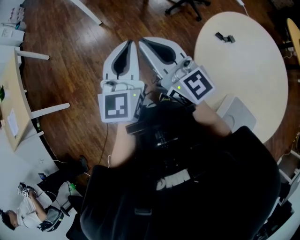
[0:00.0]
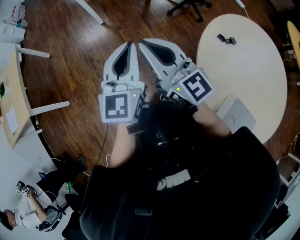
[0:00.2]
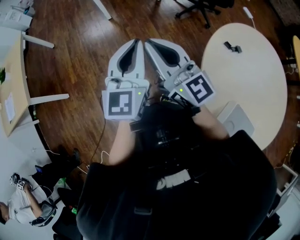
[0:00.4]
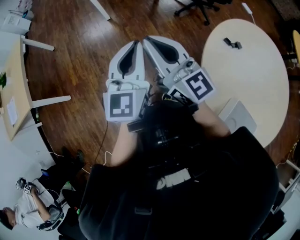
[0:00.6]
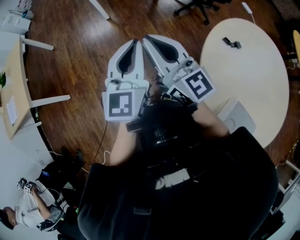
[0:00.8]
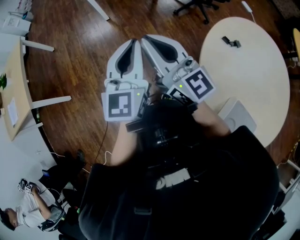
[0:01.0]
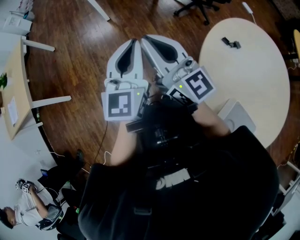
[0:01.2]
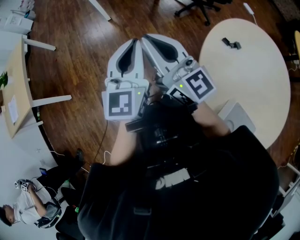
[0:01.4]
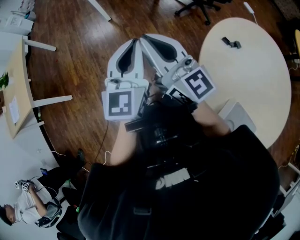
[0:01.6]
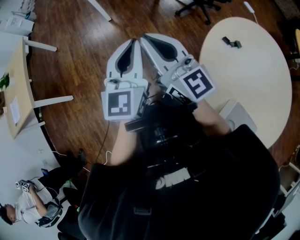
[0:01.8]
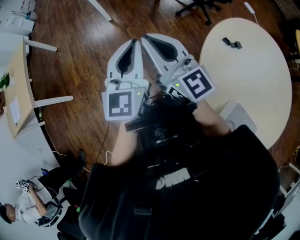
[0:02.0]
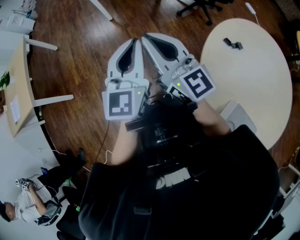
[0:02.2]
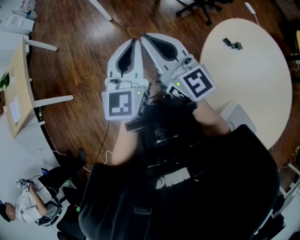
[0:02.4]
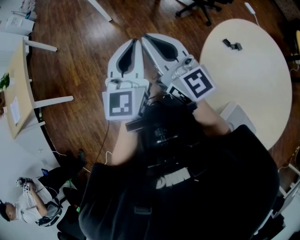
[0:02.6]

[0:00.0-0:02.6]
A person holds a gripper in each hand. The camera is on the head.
0:00.0 to 0:01.2: Neither gripper changes place.
0:01.2 to 0:02.6: Both grippers stay put.

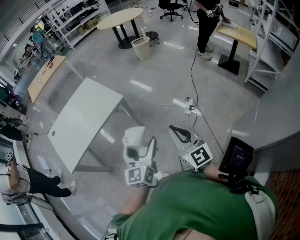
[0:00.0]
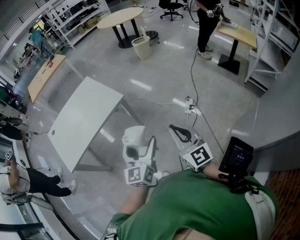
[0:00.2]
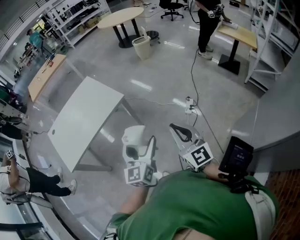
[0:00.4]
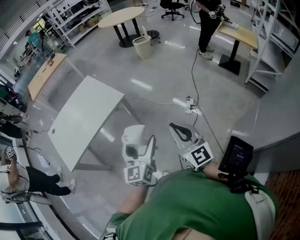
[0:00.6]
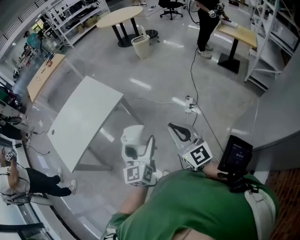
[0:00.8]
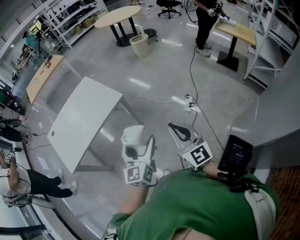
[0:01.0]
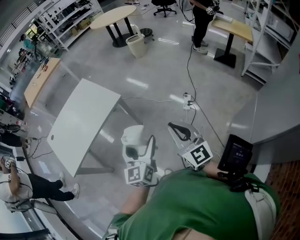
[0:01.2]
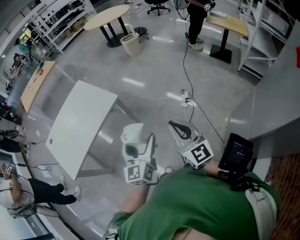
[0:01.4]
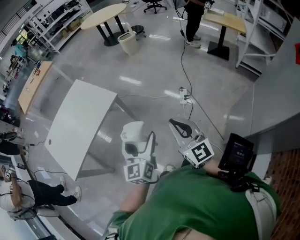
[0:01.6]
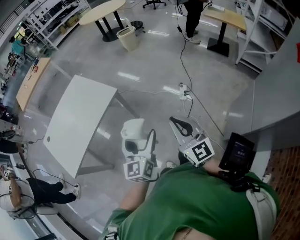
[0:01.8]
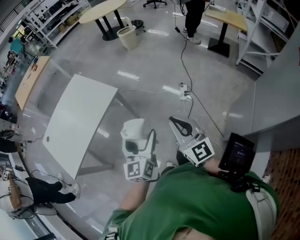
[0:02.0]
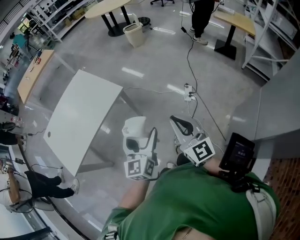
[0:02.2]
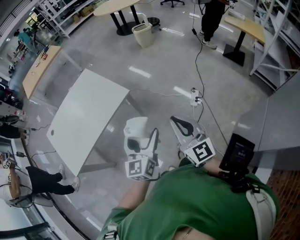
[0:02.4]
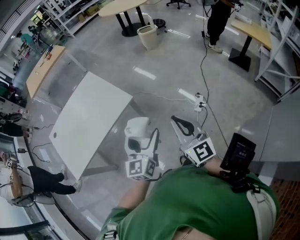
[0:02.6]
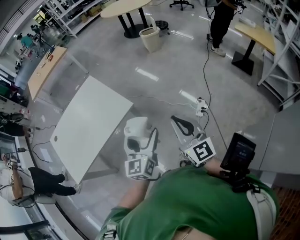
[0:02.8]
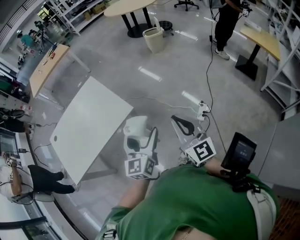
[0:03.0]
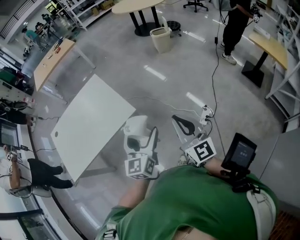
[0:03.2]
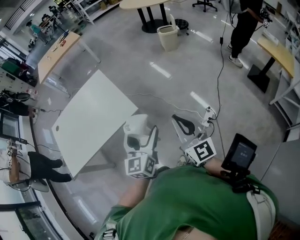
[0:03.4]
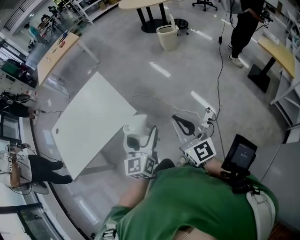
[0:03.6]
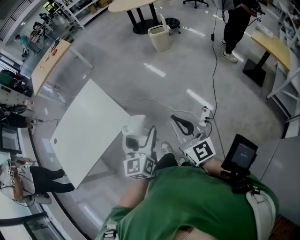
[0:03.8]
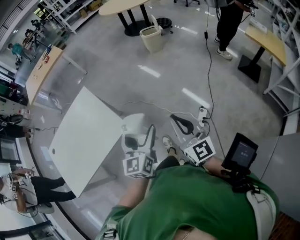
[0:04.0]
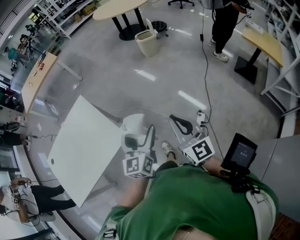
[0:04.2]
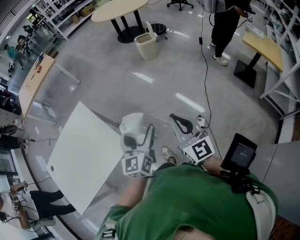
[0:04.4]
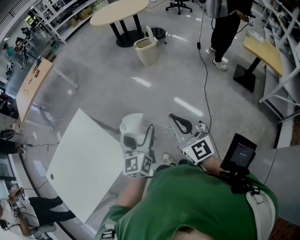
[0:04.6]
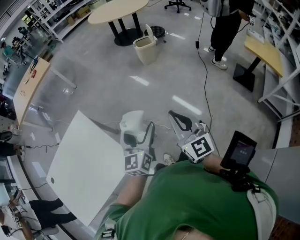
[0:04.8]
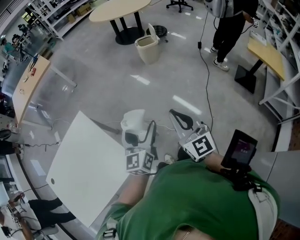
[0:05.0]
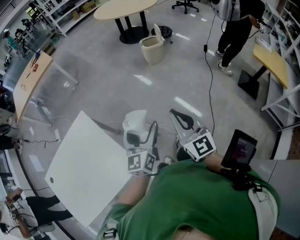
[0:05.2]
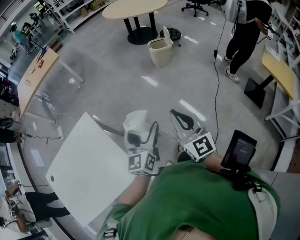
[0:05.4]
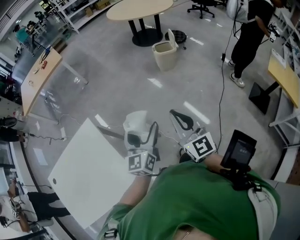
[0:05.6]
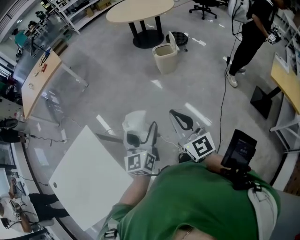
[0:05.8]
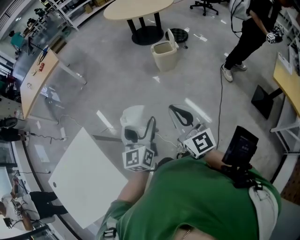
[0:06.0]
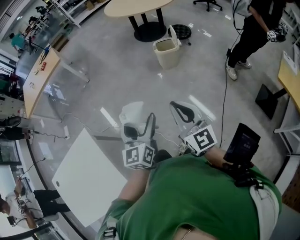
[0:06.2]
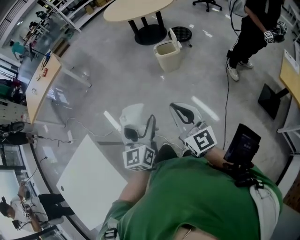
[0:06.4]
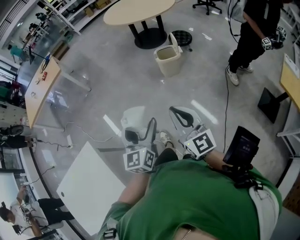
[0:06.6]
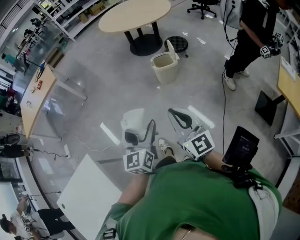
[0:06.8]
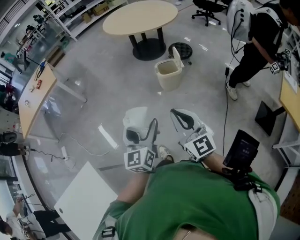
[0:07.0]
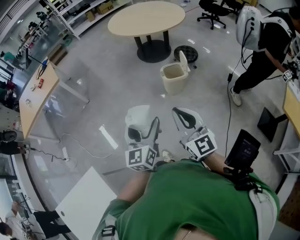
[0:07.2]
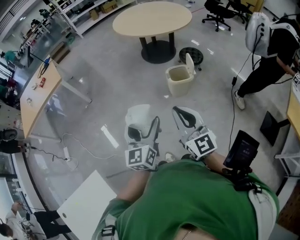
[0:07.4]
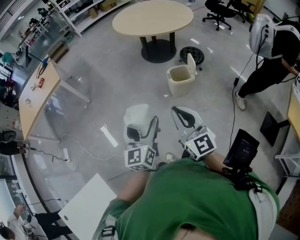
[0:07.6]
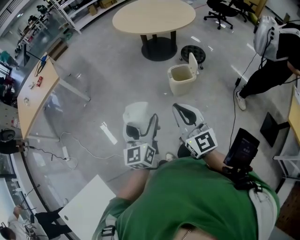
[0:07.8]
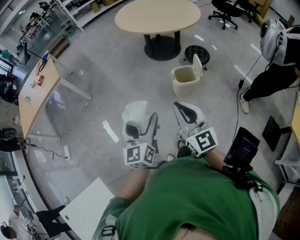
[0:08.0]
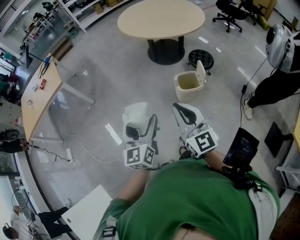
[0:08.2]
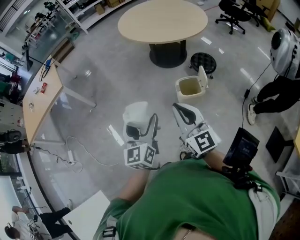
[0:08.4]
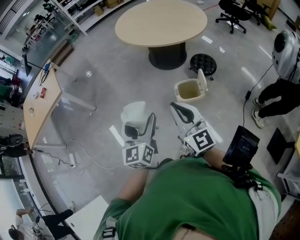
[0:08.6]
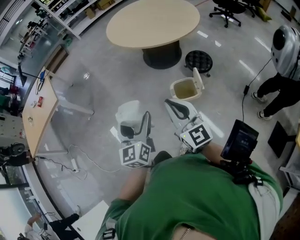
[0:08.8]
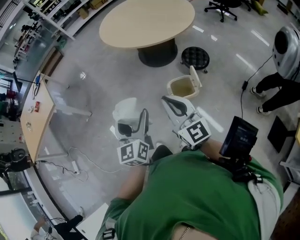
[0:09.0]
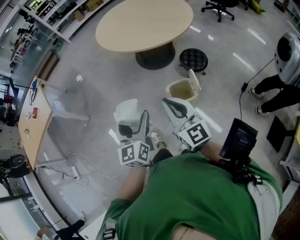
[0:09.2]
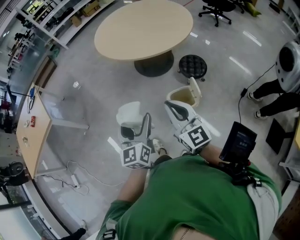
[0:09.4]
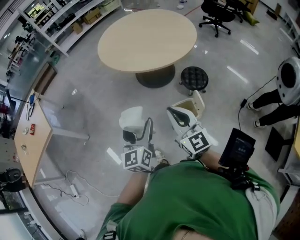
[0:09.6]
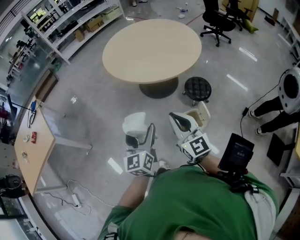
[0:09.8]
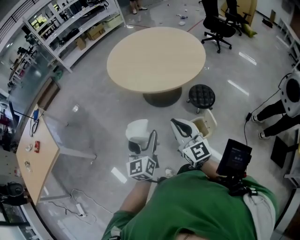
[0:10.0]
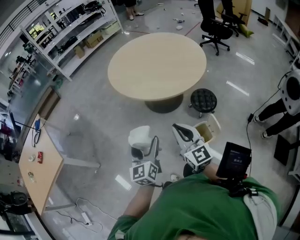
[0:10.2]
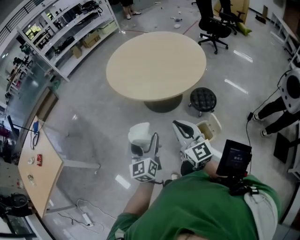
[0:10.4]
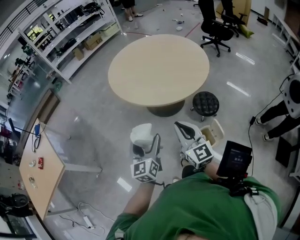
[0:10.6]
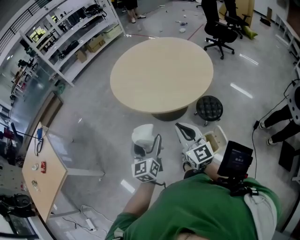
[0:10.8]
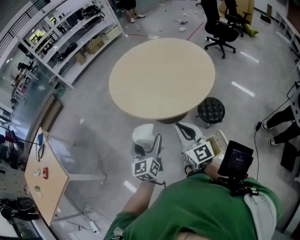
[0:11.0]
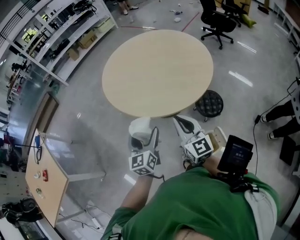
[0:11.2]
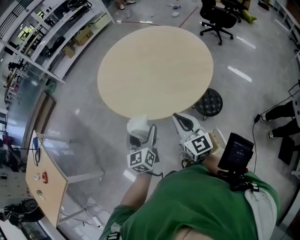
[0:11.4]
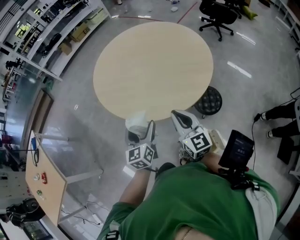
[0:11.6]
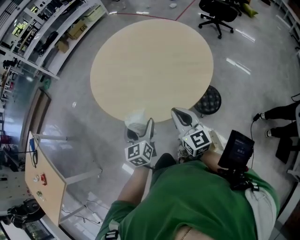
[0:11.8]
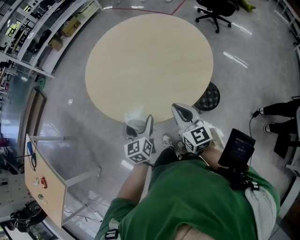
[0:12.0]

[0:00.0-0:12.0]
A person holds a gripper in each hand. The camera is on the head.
0:00.0 to 0:01.6: The grippers stay close to where they were, moving slightly.
0:01.6 to 0:03.0: Both grippers travel together forward, roughly 20 cm.
0:03.0 to 0:04.4: The grippers both shift forward by about 20 cm.
0:04.4 to 0:06.0: Both grippers travel together forward, approximately 35 cm.
0:06.0 to 0:07.6: The two grippers go approximately 35 cm forward.
0:07.6 to 0:09.0: Both grippers move forward and to the right, about 30 cm.
0:09.0 to 0:10.4: The two grippers go roughly 25 cm forward.
0:10.4 to 0:12.0: The right gripper travels forward and to the right by approximately 30 cm; the left gripper is displaced forward by approximately 30 cm.

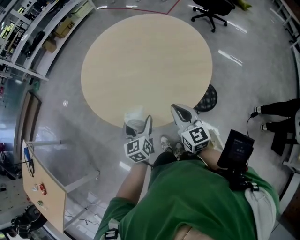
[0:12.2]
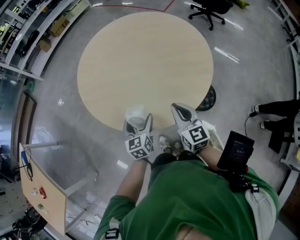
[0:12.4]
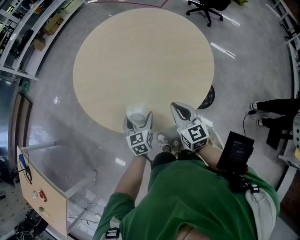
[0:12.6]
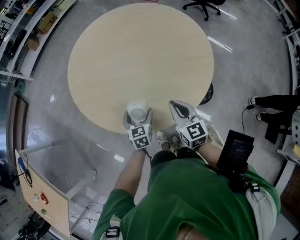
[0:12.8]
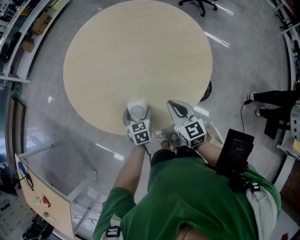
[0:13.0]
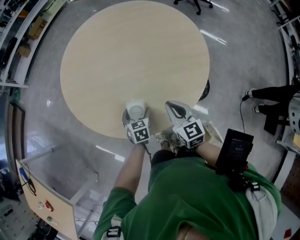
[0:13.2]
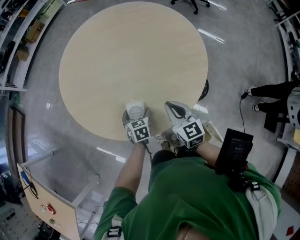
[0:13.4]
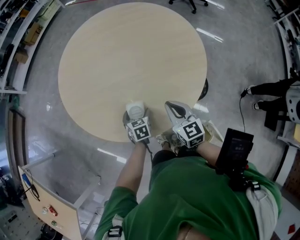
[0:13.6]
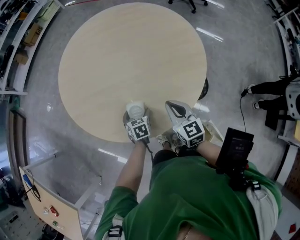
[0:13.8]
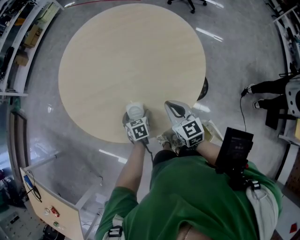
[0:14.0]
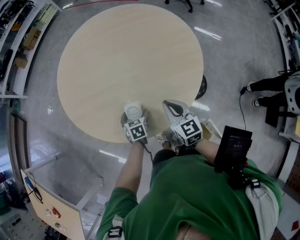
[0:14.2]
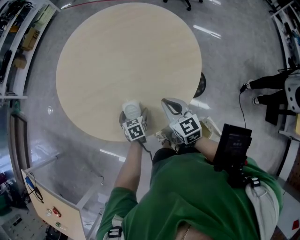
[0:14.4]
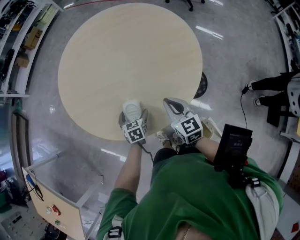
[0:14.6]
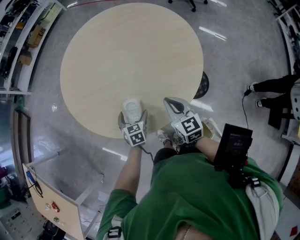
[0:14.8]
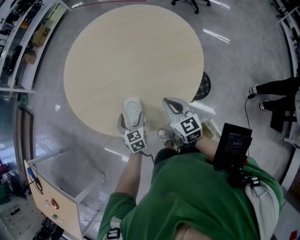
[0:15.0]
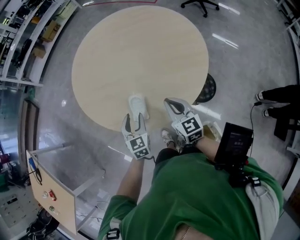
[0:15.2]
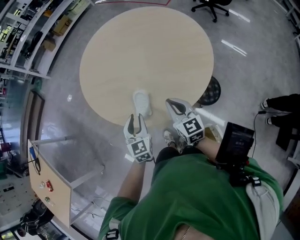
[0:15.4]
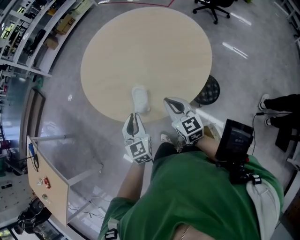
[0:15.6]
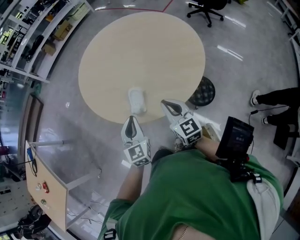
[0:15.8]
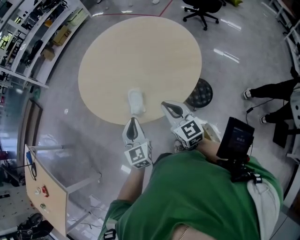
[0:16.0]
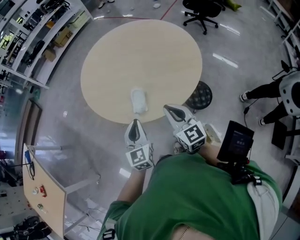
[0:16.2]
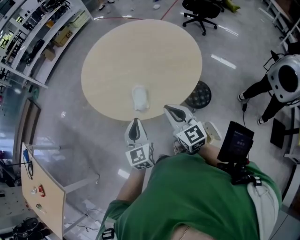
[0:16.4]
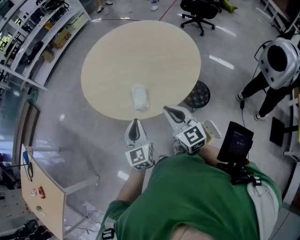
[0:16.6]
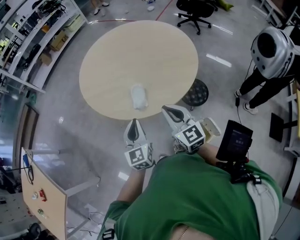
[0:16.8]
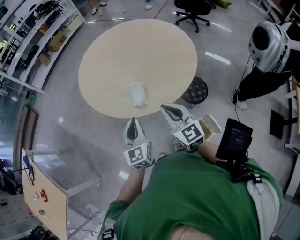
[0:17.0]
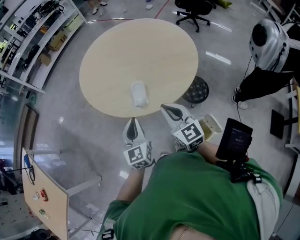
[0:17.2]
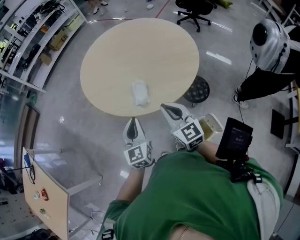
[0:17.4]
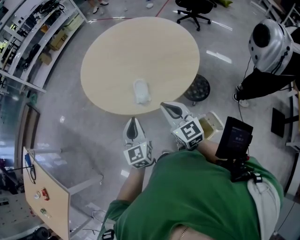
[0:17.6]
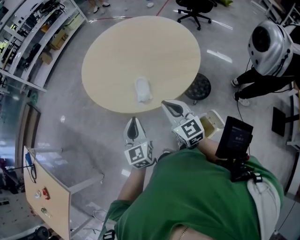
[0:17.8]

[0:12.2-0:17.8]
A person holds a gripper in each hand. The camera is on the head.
0:12.2 to 0:13.6: The left gripper is displaced downward and forward by approximately 20 cm, and tilts its fingers about 30 degrees downward; the right gripper shifts roughly 10 cm forward and downward.
0:13.6 to 0:15.0: The left gripper goes some 5 cm upward.
0:15.0 to 0:16.4: The left gripper moves upward and backward, some 20 cm, swivels some 30 degrees, and closes. The right gripper moves backward, upward and to the left, roughly 15 cm.
0:16.4 to 0:17.8: The left gripper moves approximately 5 cm, while the right gripper ends up approximately 5 cm from where it was.

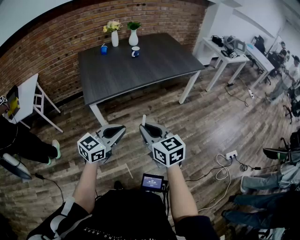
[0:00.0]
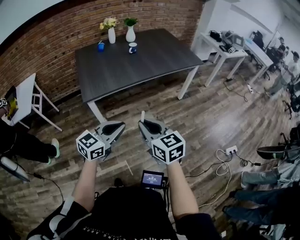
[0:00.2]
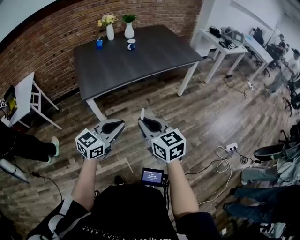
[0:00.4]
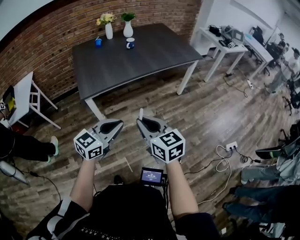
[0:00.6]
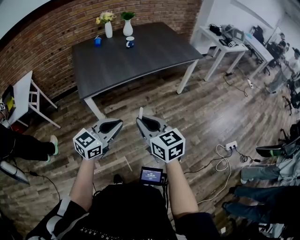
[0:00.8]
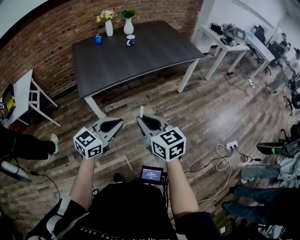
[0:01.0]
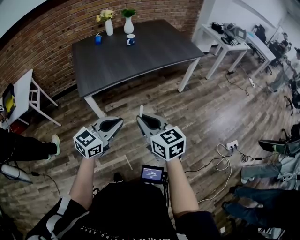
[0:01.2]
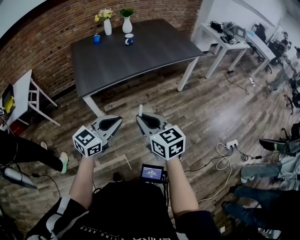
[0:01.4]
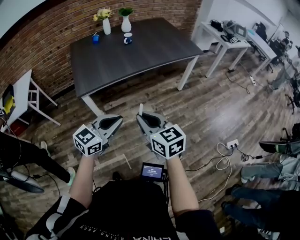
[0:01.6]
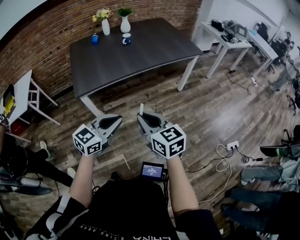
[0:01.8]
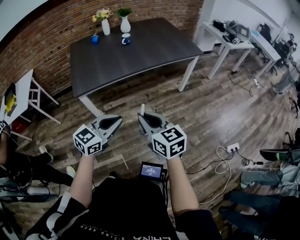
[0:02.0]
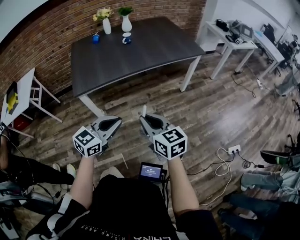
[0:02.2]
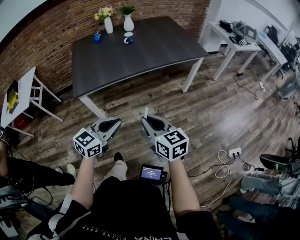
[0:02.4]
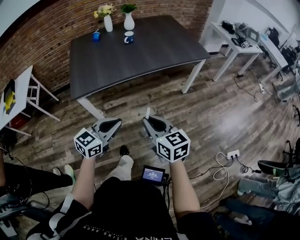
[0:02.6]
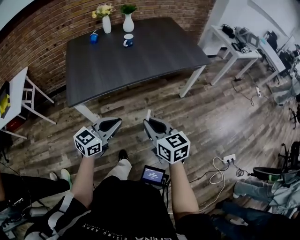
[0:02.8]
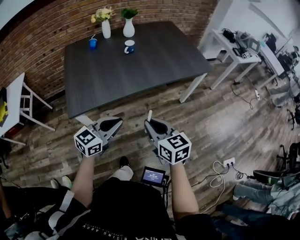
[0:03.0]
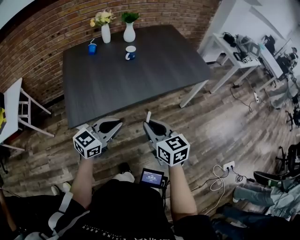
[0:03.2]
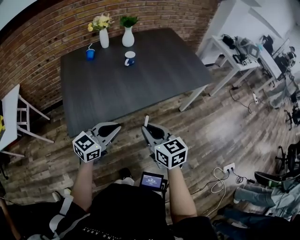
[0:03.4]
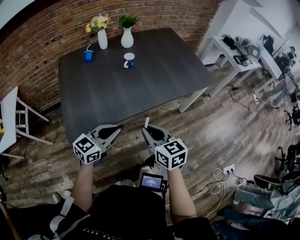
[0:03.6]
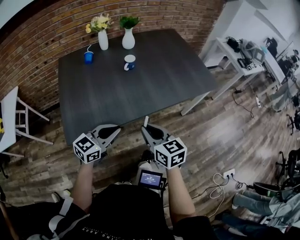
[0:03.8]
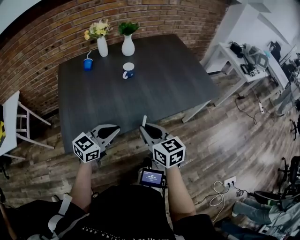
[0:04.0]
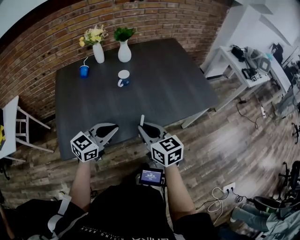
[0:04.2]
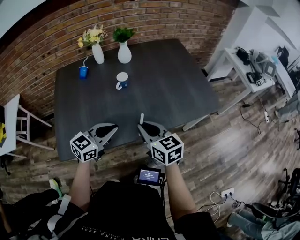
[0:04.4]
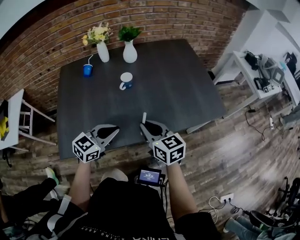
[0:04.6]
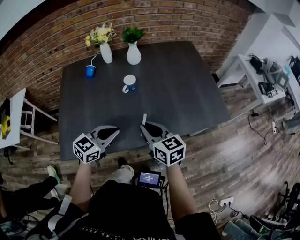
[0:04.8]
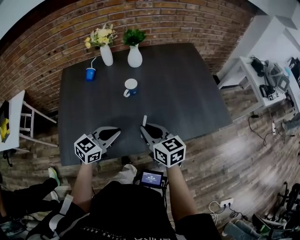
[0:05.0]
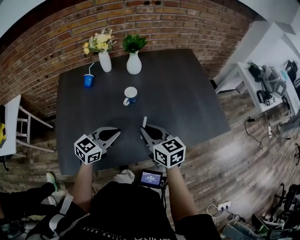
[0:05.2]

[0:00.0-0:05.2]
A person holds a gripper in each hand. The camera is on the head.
0:00.0 to 0:01.8: The two grippers go roughly 5 cm to the right.
0:01.8 to 0:03.4: The grippers both shift forward by about 30 cm.
0:03.4 to 0:05.2: The two grippers go roughly 35 cm forward.
